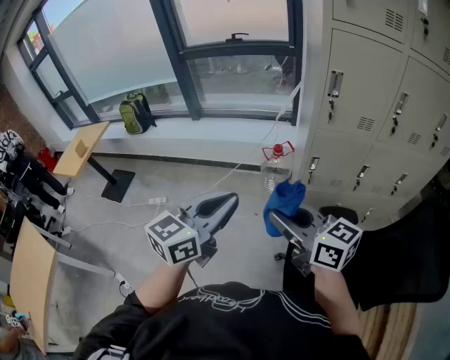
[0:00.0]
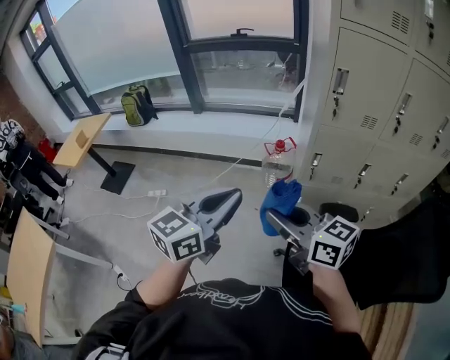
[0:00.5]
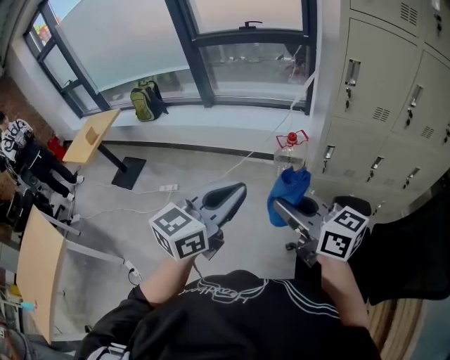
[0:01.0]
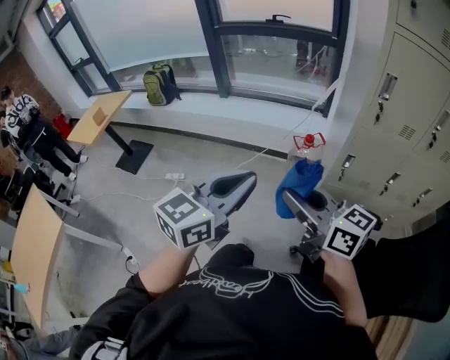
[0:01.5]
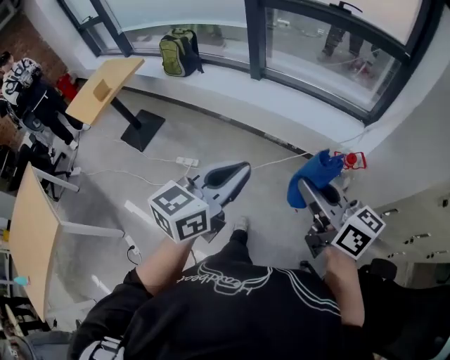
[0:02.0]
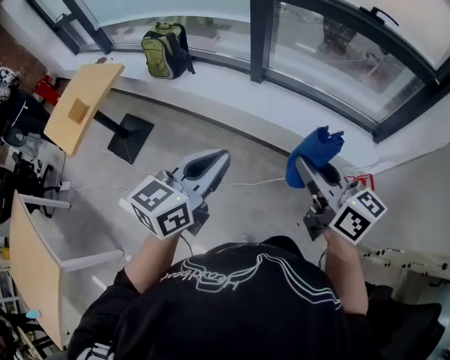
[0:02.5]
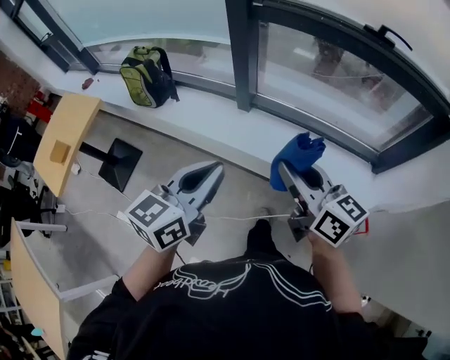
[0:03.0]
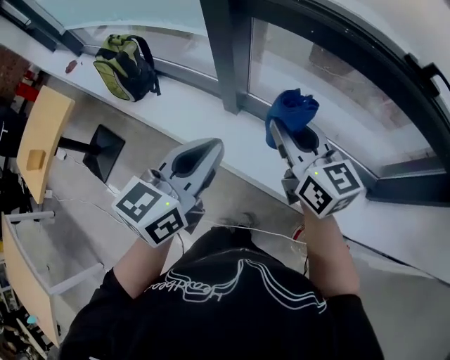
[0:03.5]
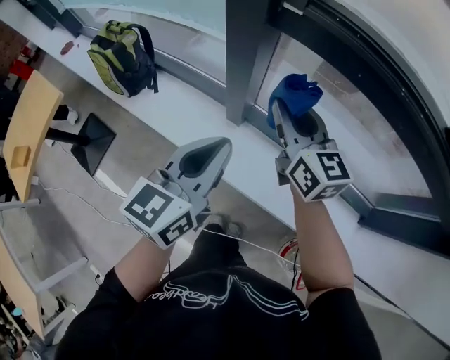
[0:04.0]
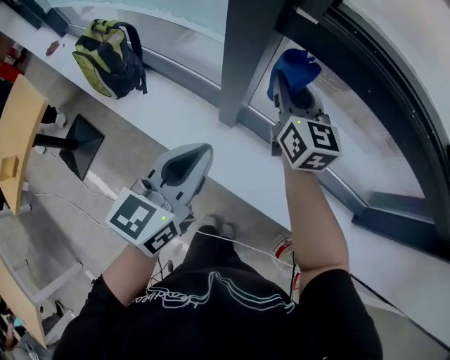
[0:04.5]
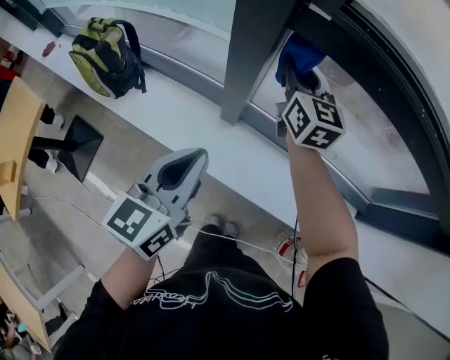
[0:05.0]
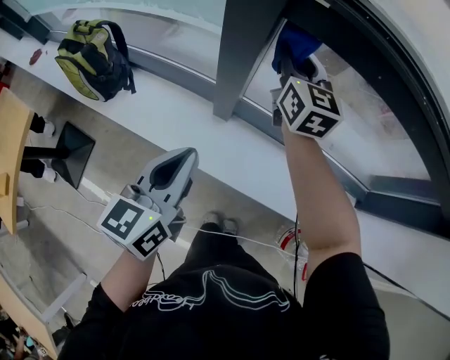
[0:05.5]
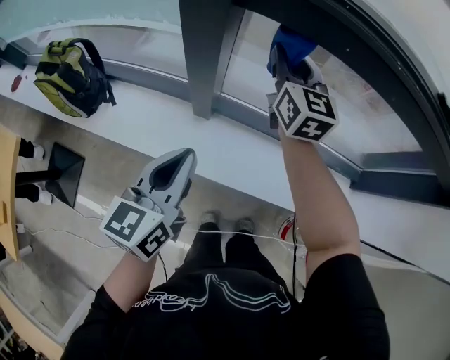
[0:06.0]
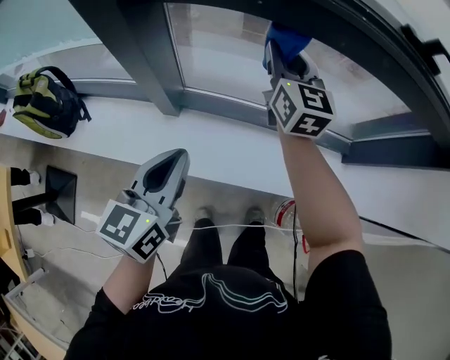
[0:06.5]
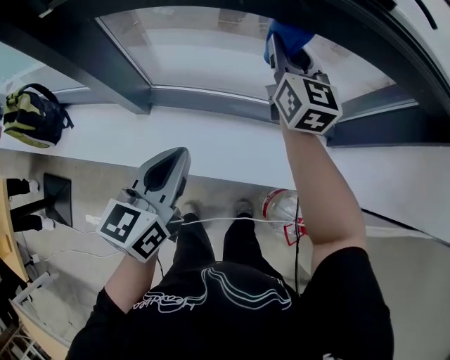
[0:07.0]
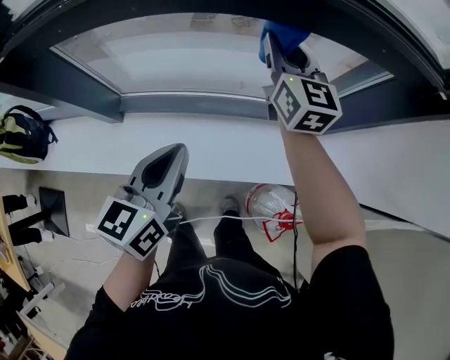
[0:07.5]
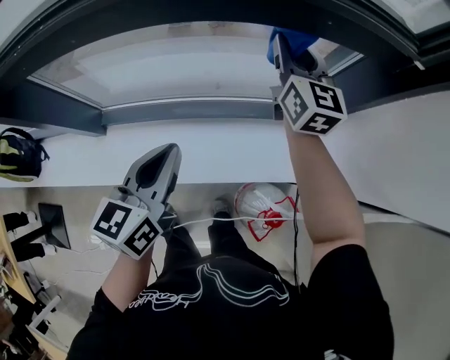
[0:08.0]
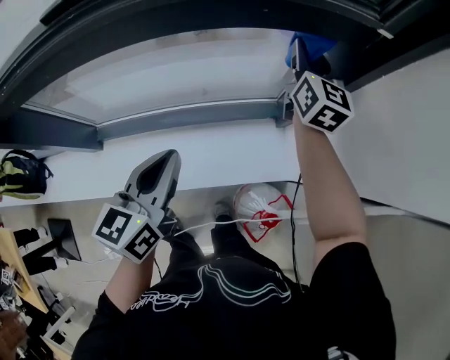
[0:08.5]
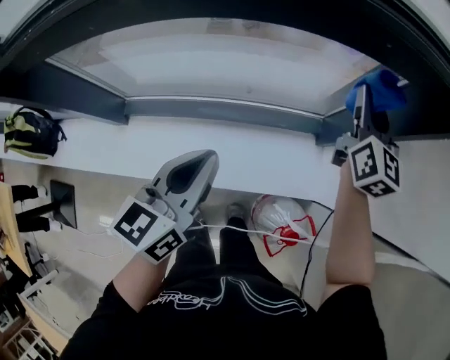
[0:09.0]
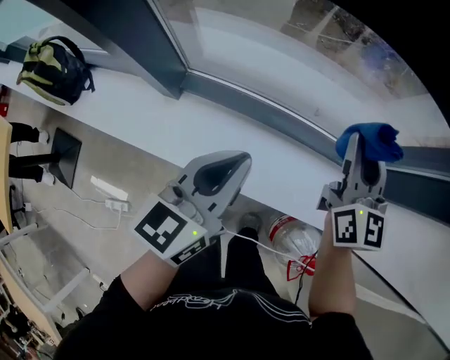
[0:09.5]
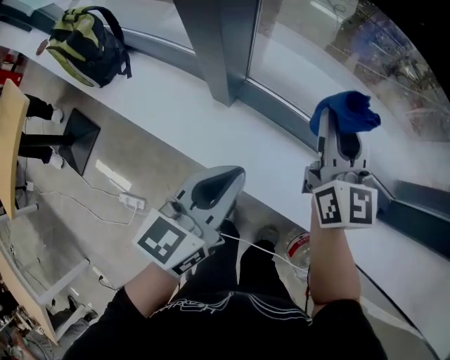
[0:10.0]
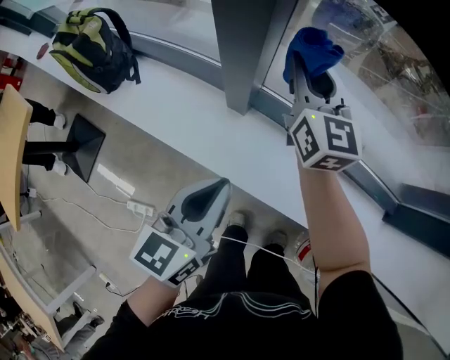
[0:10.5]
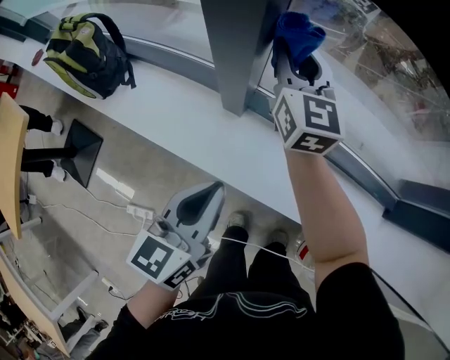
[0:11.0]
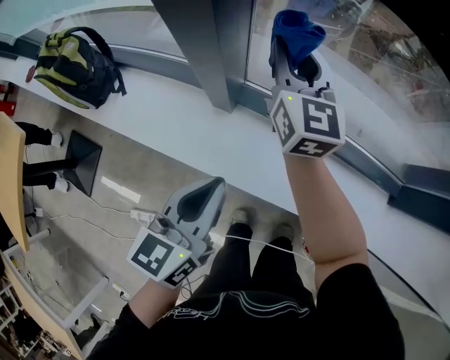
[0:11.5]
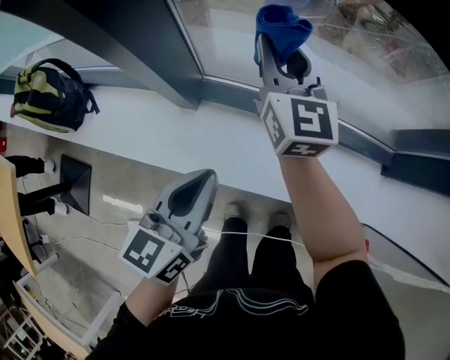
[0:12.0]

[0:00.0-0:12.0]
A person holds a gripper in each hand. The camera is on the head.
0:00.0 to 0:02.0: The left gripper travels to the left and forward by about 40 cm. The right gripper shifts roughly 40 cm forward and to the left.
0:02.0 to 0:04.0: The two grippers travel together, forward, approximately 90 cm. The right gripper turns by approximately 20 degrees.
0:04.0 to 0:06.0: The right gripper shifts about 10 cm forward, and turns by approximately 30 degrees, while the left gripper shifts approximately 10 cm downward.
0:06.0 to 0:08.0: Both grippers are carried to the right, approximately 50 cm.
0:08.0 to 0:10.0: The right gripper ends up roughly 50 cm from where it was, and changes its angle by roughly 30 degrees, while the left gripper shifts by approximately 35 cm.
0:10.0 to 0:12.0: The right gripper travels forward by roughly 10 cm, and goes to the left and returns, about 15 cm each way, while the left gripper travels to the left and back again, about 10 cm each way.

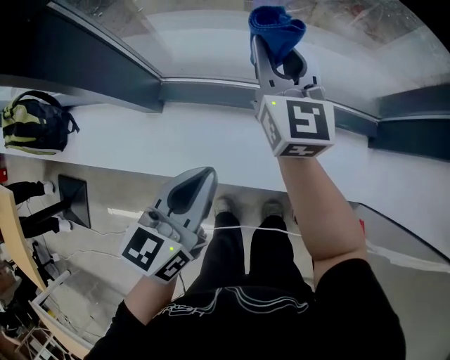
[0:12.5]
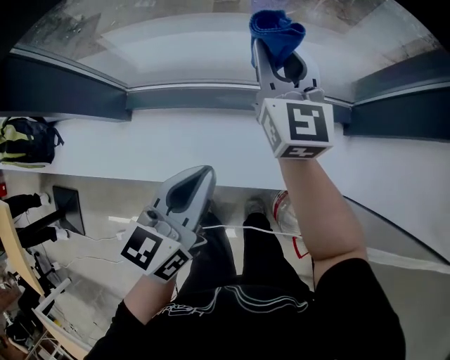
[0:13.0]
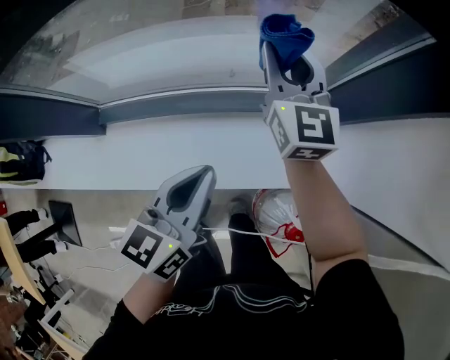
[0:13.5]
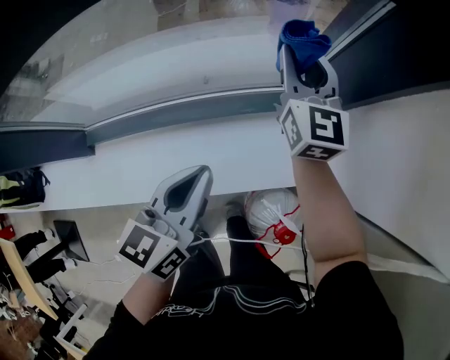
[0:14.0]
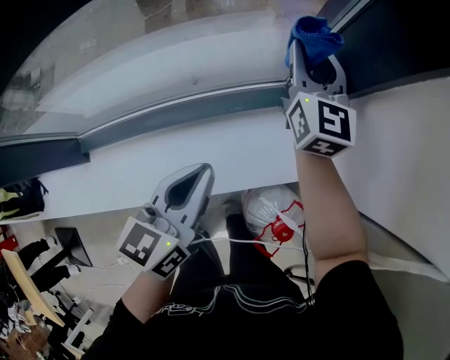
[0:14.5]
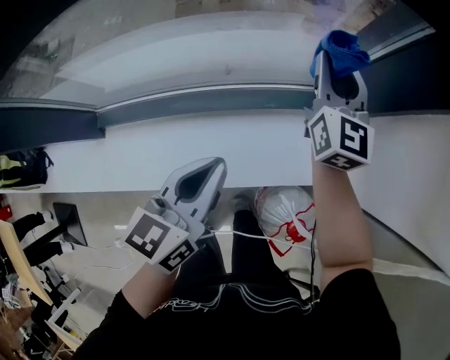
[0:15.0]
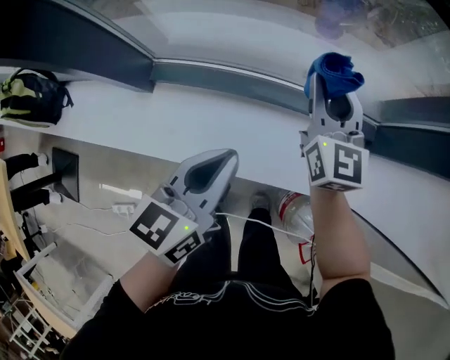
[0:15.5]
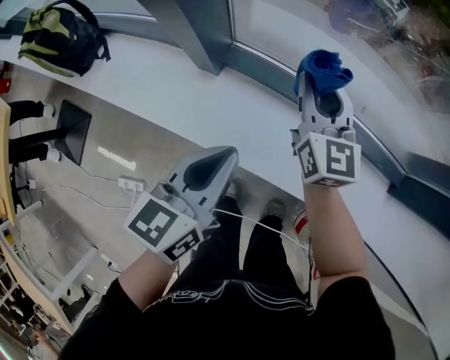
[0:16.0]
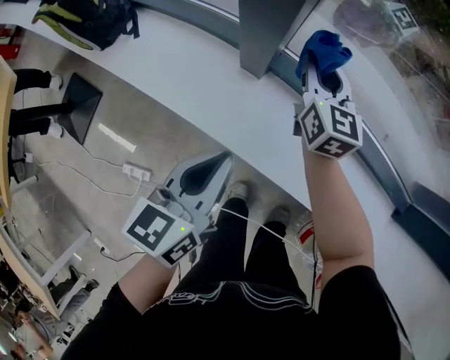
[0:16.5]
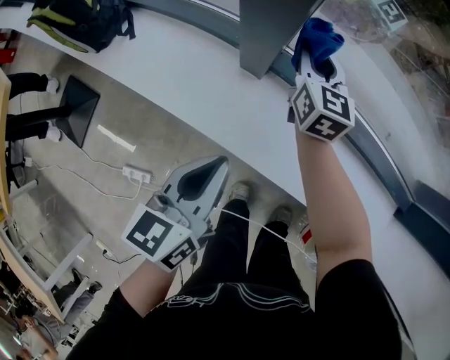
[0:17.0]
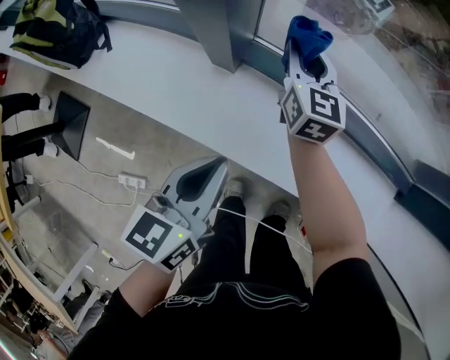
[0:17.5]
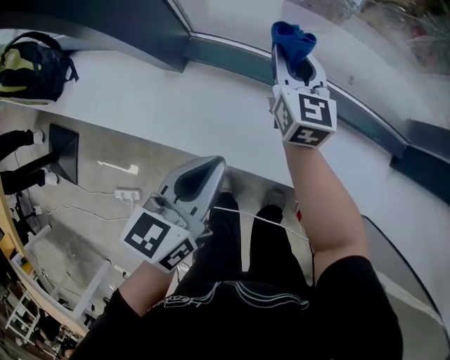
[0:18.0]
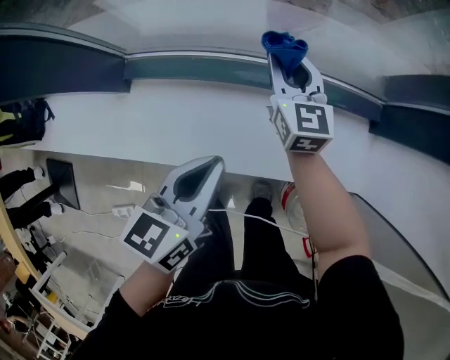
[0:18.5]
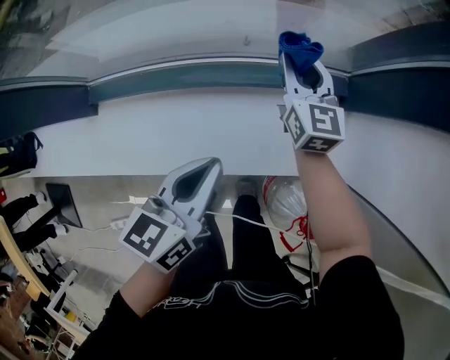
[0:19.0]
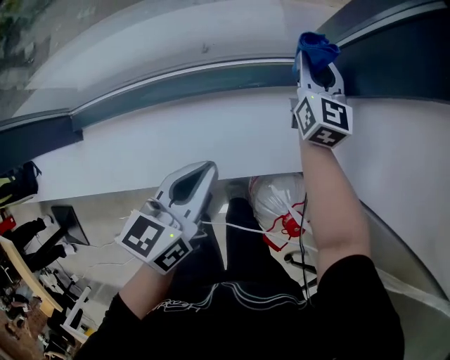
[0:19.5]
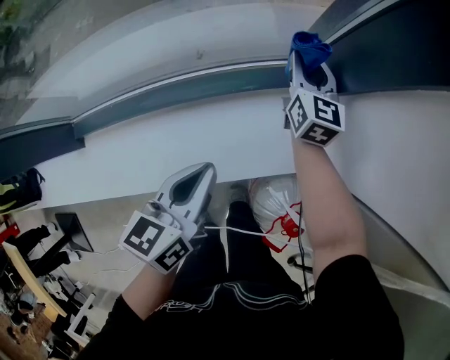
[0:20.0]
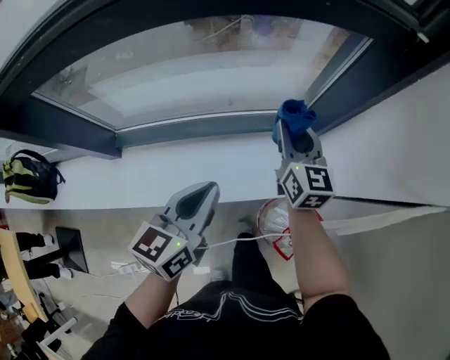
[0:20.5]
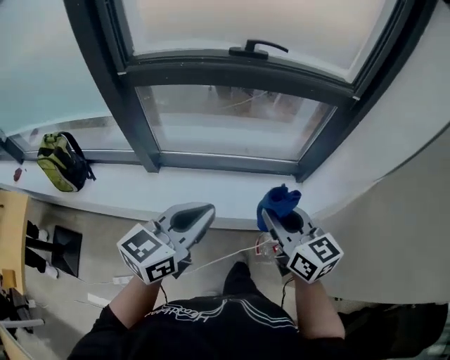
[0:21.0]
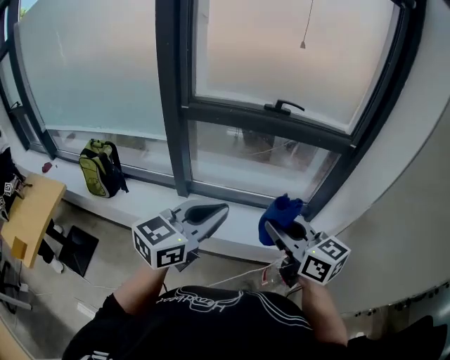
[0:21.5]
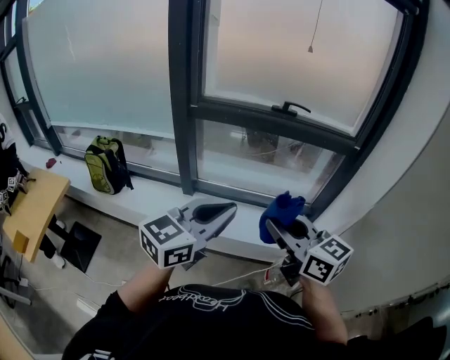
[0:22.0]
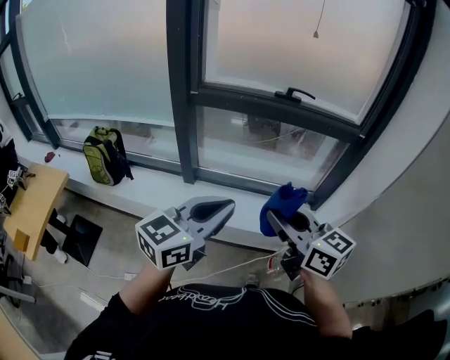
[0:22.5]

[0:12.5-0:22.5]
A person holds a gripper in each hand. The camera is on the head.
0:12.5 to 0:14.5: Both grippers travel together to the right, about 40 cm. The right gripper changes its angle by roughly 30 degrees.
0:14.5 to 0:16.5: The two grippers travel together, approximately 70 cm. The left gripper turns by about 40 degrees. Meanwhile the right gripper rotates some 50 degrees.
0:16.5 to 0:18.5: Both grippers travel together to the right, roughly 35 cm. The left gripper changes its angle by about 30 degrees.
0:18.5 to 0:20.5: The left gripper travels to the right and upward by about 20 cm. The right gripper is displaced to the right and upward by some 30 cm.
0:20.5 to 0:22.5: The two grippers go about 60 cm backward, upward and to the left. The left gripper rotates some 20 degrees, while the right gripper rotates approximately 40 degrees.

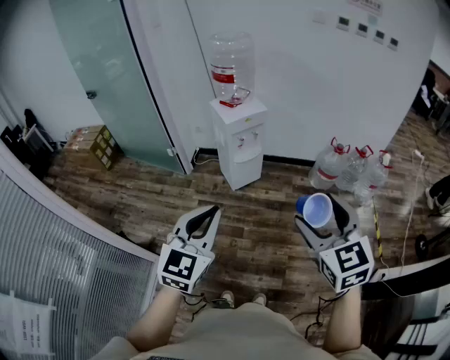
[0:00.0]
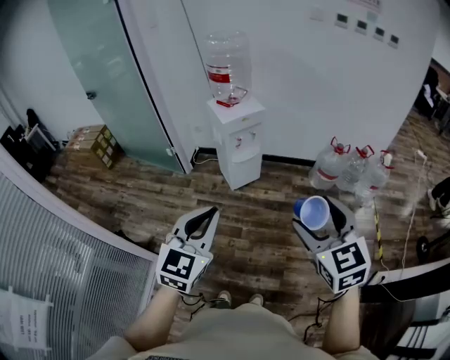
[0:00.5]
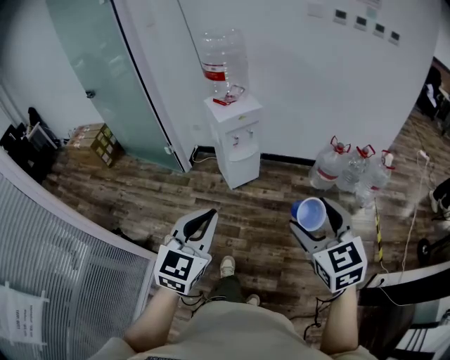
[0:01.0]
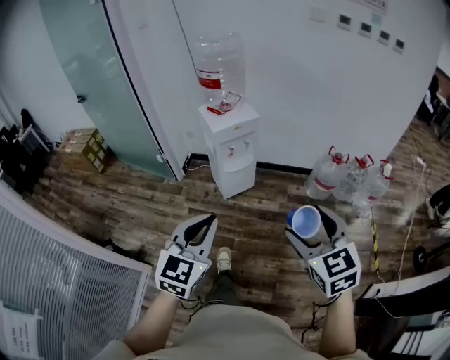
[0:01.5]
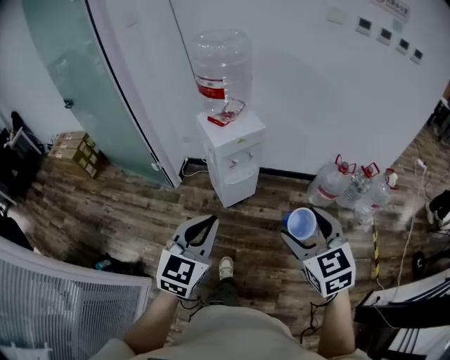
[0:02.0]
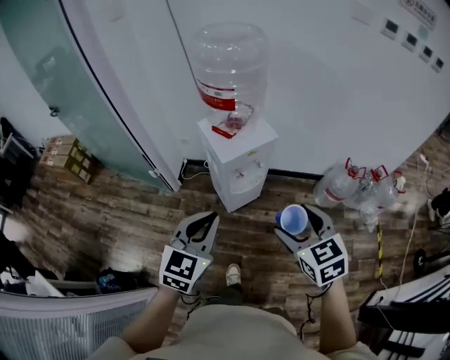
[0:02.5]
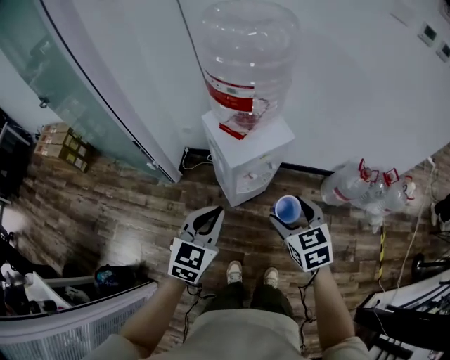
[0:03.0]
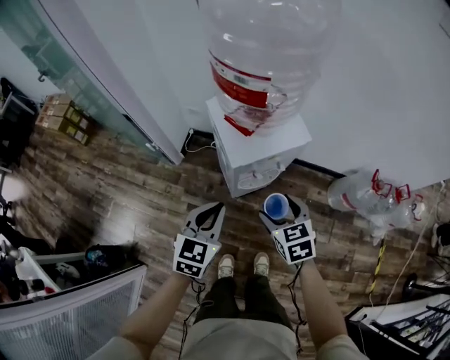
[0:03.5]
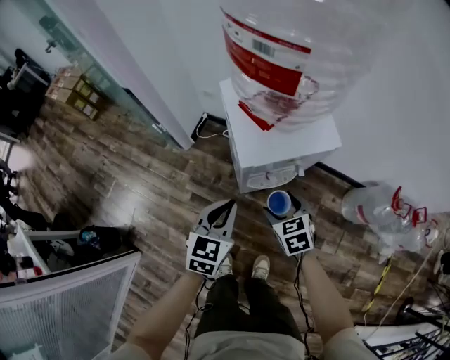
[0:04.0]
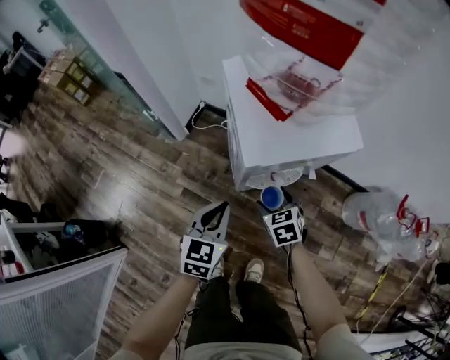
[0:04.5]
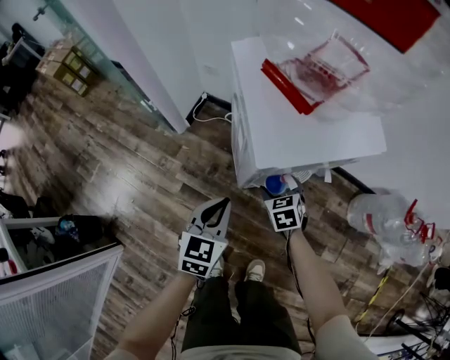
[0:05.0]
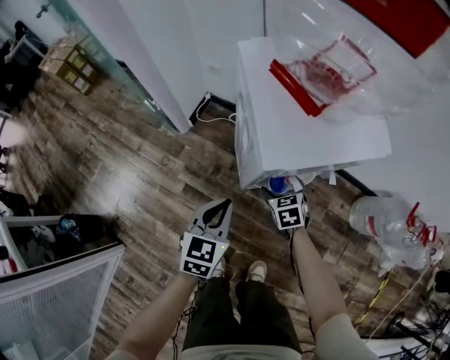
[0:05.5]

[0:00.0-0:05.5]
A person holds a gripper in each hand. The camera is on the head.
0:00.0 to 0:02.0: Both grippers travel together forward, some 25 cm.
0:02.0 to 0:03.5: Both grippers travel together forward and downward, approximately 40 cm.
0:03.5 to 0:05.5: The right gripper heads downward and forward, covering some 40 cm, while the left gripper is displaced downward by some 25 cm.
